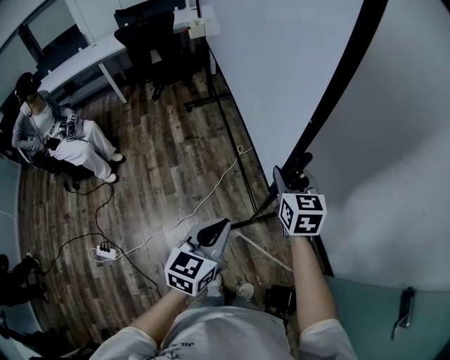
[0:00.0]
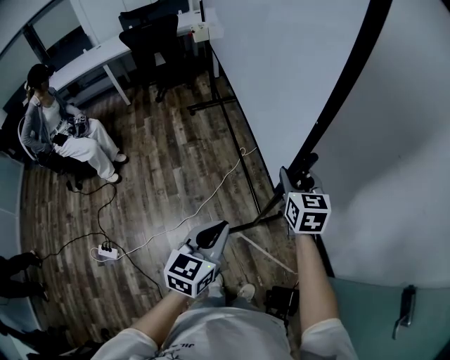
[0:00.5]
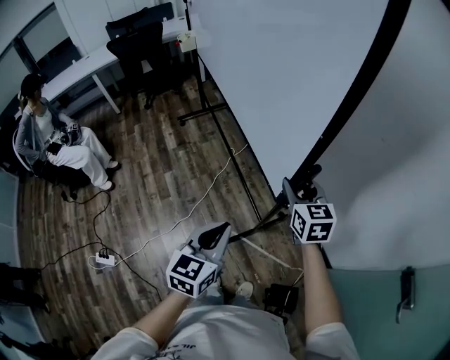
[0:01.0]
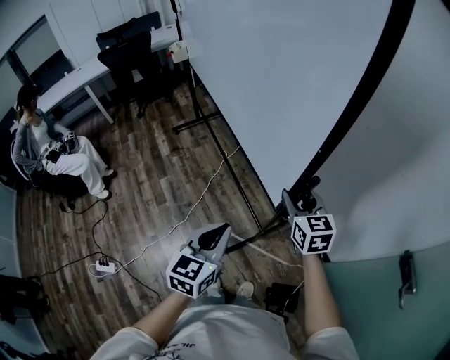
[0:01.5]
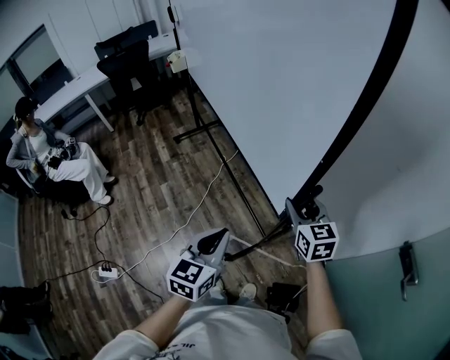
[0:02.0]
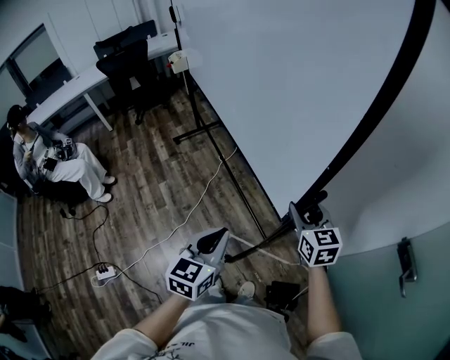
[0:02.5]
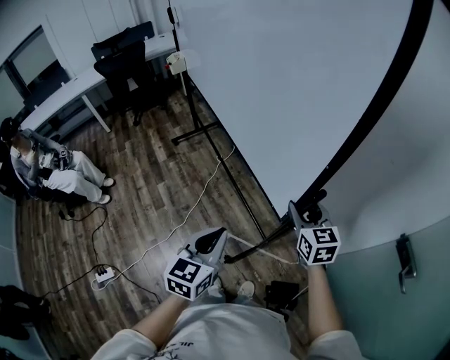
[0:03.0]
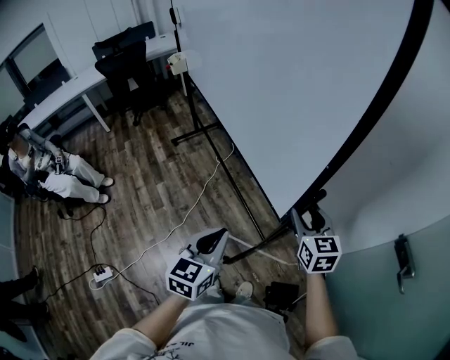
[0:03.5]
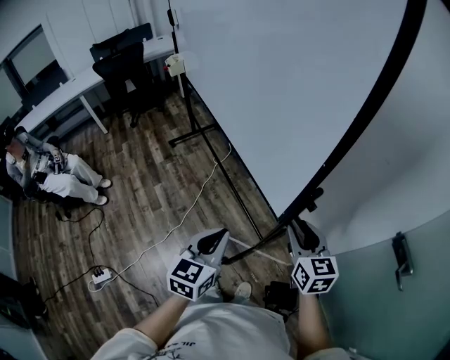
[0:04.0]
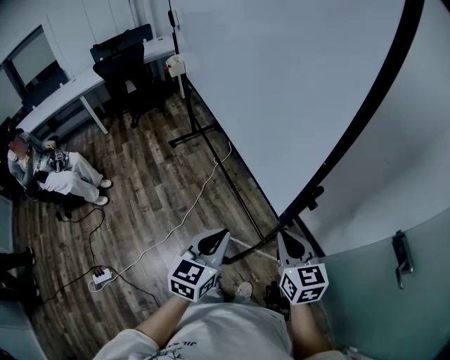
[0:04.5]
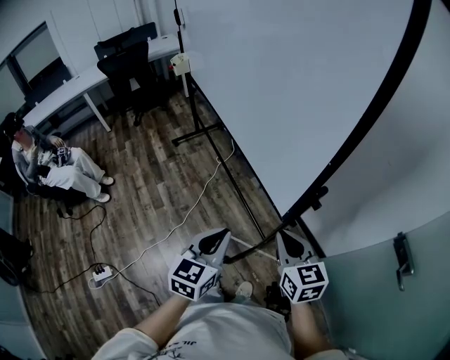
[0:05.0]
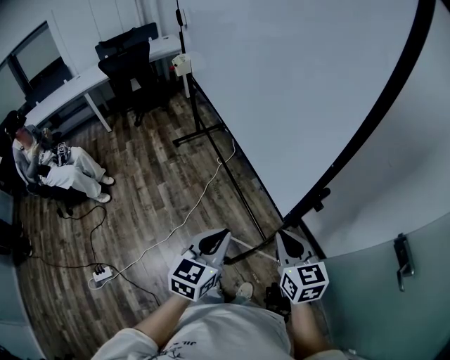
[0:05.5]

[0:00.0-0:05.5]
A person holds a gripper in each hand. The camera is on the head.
0.0 to 2.0 s: The right gripper goes some 20 cm to the right and backward, while the left gripper moves backward and to the right, roughly 10 cm.
2.0 to 3.5 s: The right gripper shifts by approximately 5 cm.
3.5 to 5.5 s: The right gripper moves backward and to the left, roughly 10 cm, and closes up.

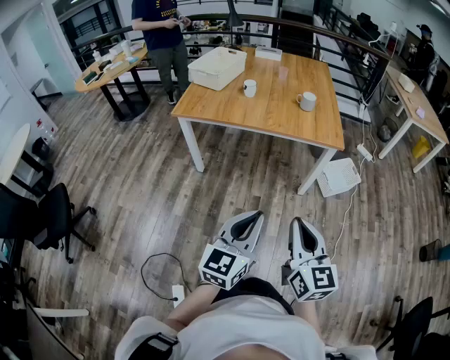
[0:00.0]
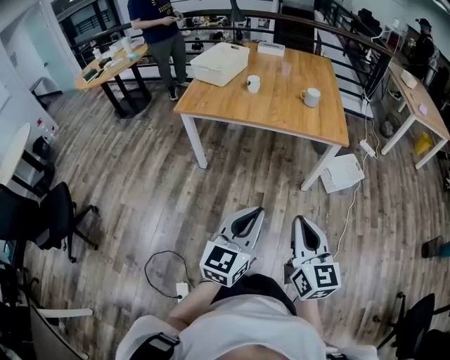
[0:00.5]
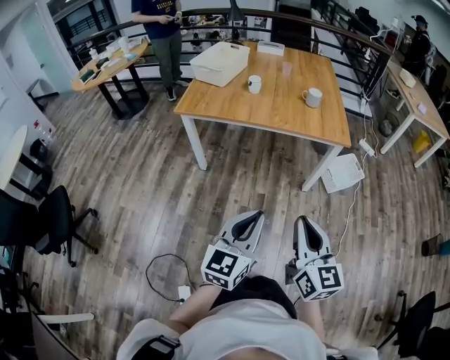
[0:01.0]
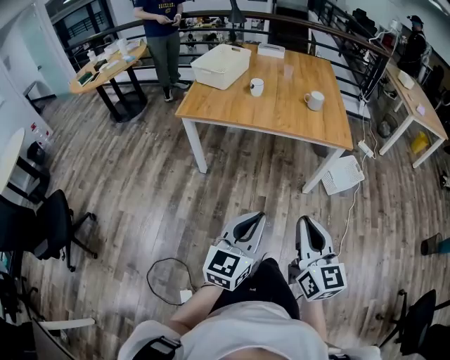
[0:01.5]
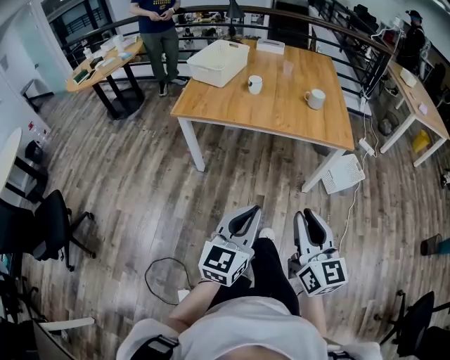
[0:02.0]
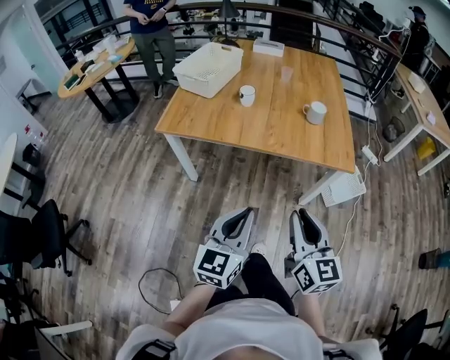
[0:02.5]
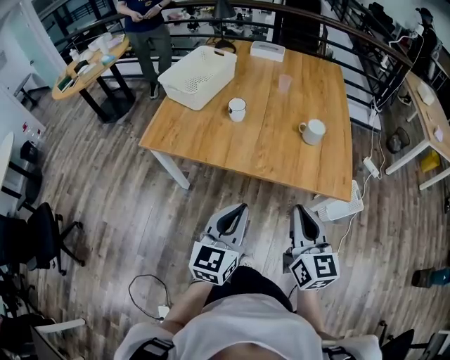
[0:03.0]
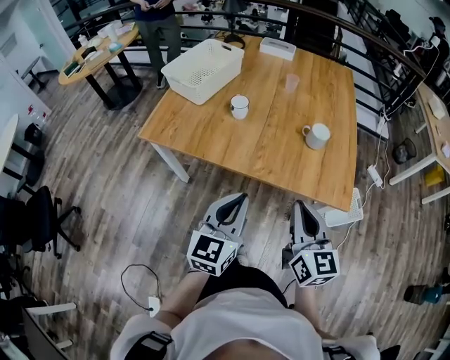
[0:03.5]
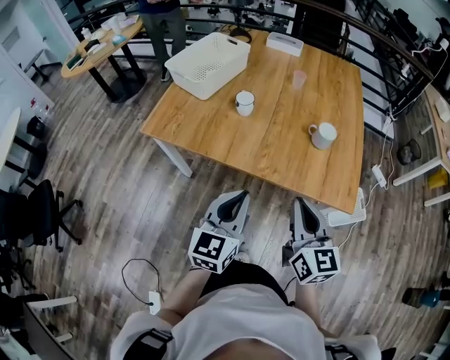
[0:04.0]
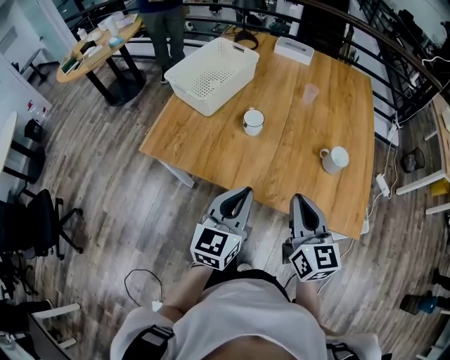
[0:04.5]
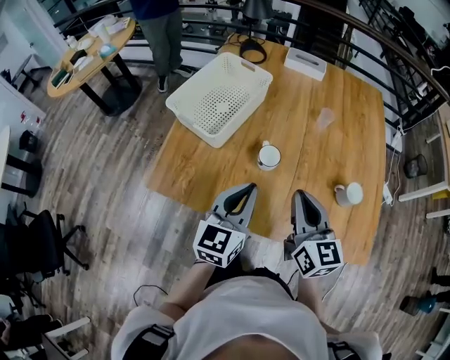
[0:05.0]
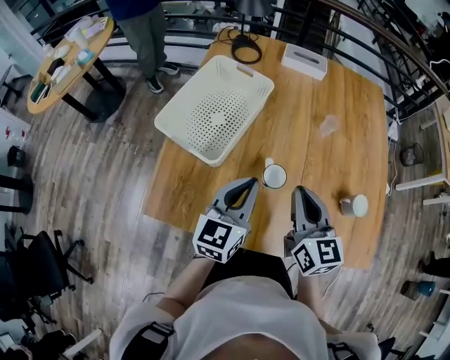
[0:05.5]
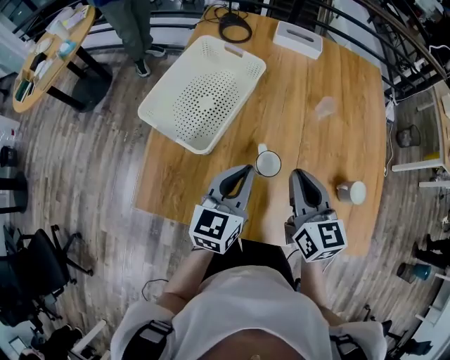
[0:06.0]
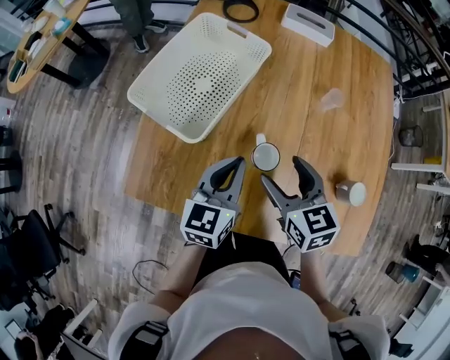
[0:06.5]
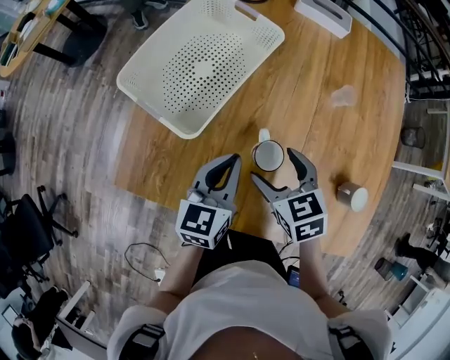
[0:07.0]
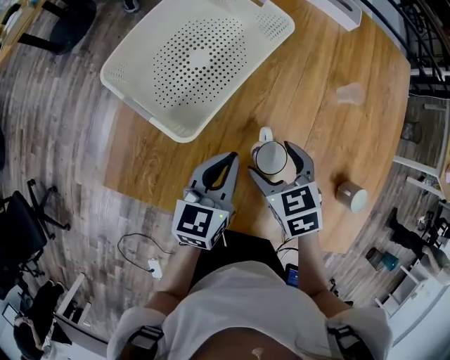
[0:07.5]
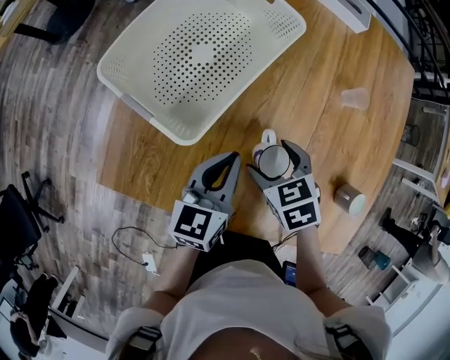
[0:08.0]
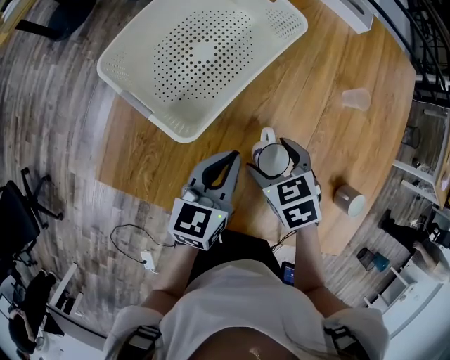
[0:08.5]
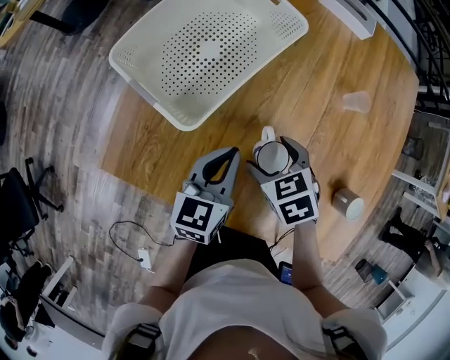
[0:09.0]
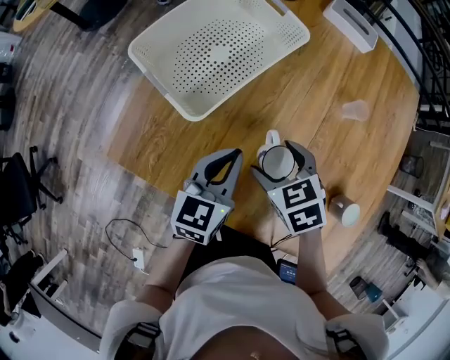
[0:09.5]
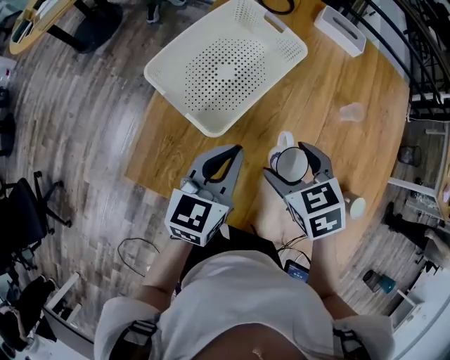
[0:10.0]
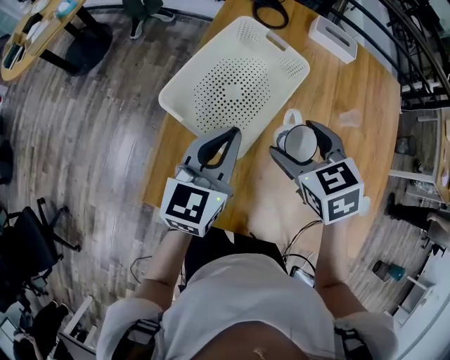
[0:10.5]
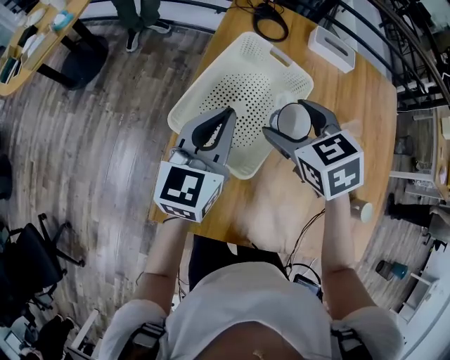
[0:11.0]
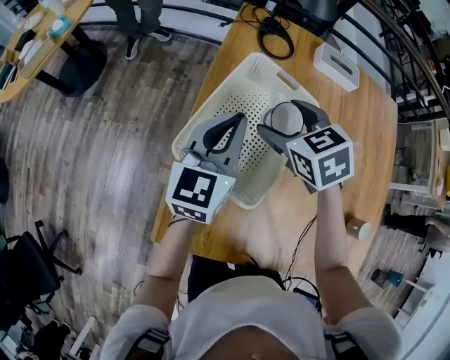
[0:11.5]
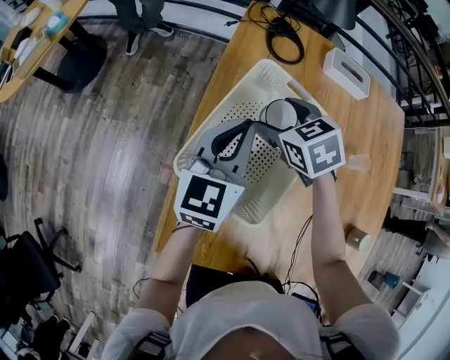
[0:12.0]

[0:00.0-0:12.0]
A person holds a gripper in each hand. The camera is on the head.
0.0 to 2.0 s: The left gripper heads to the left and forward, covering roughly 10 cm. Meanwhile the right gripper travels forward and to the left by approximately 10 cm.
2.0 to 4.0 s: Both grippers move forward, approximately 35 cm.
4.0 to 6.0 s: The two grippers go some 40 cm forward and to the left.
6.0 to 8.0 s: The right gripper shifts roughly 15 cm downward, tilts its fingers about 50 degrees downward, and opens its fingers. Meanwhile the left gripper is displaced downward by about 10 cm.
8.0 to 10.0 s: Both grippers travel together upward, about 10 cm.
10.0 to 12.0 s: The left gripper is displaced forward by approximately 25 cm, while the right gripper goes approximately 30 cm forward and to the left.

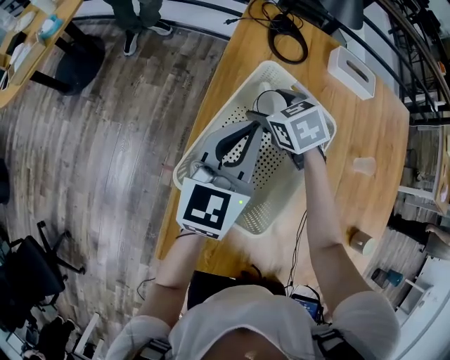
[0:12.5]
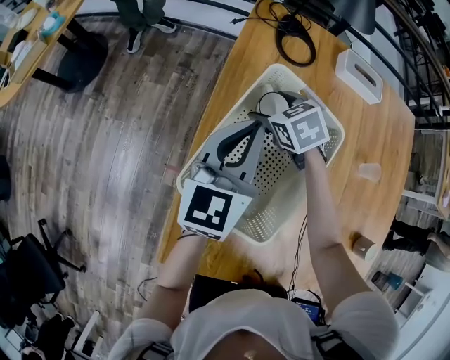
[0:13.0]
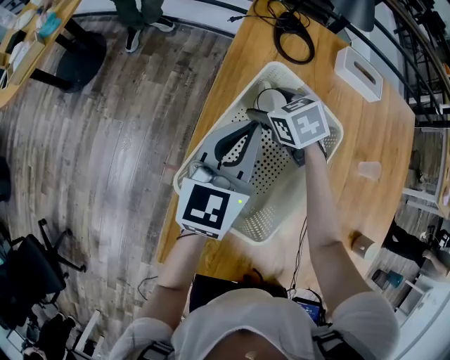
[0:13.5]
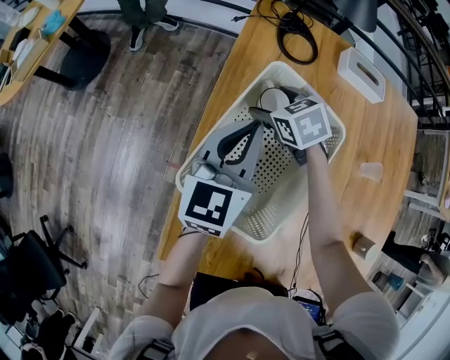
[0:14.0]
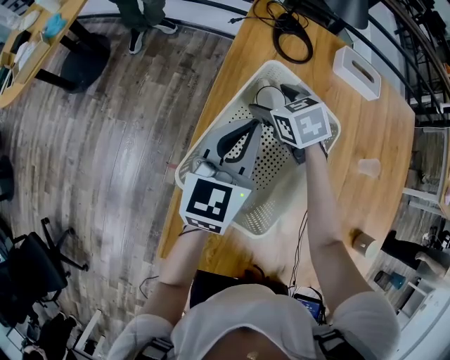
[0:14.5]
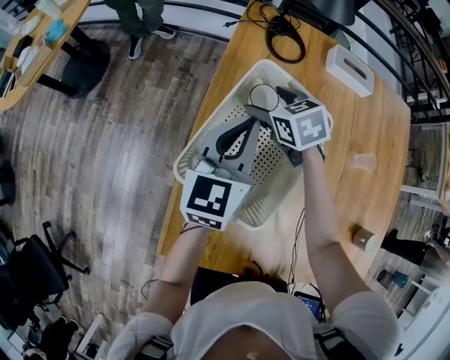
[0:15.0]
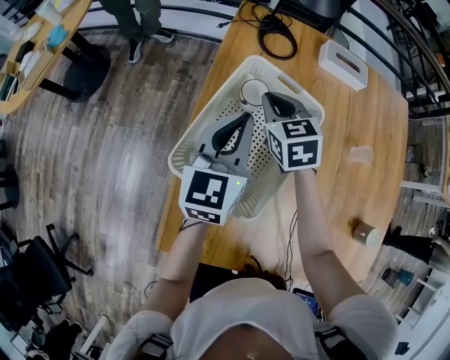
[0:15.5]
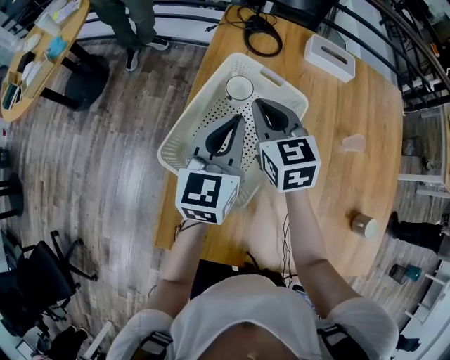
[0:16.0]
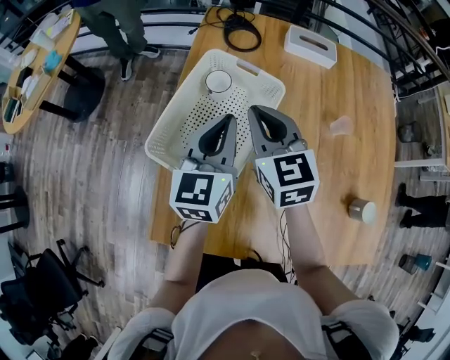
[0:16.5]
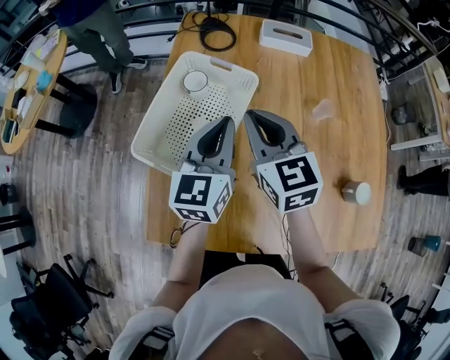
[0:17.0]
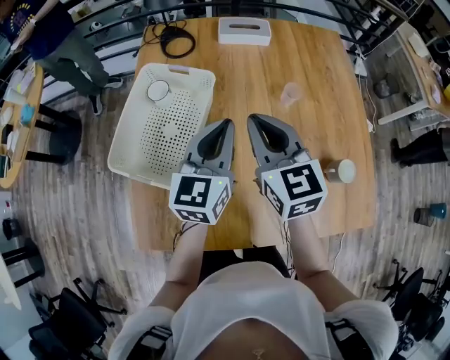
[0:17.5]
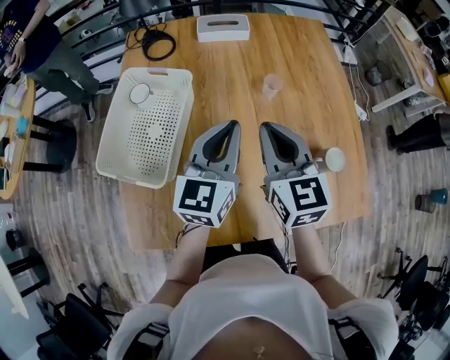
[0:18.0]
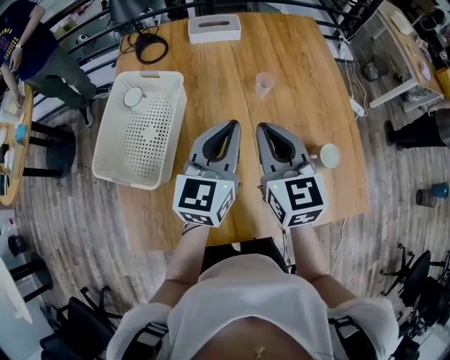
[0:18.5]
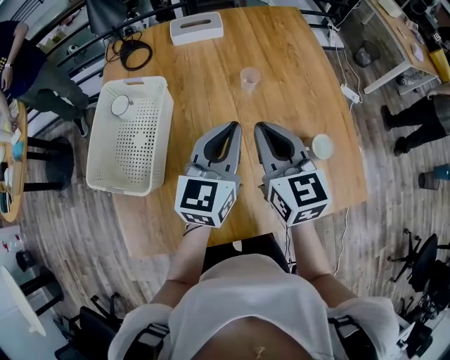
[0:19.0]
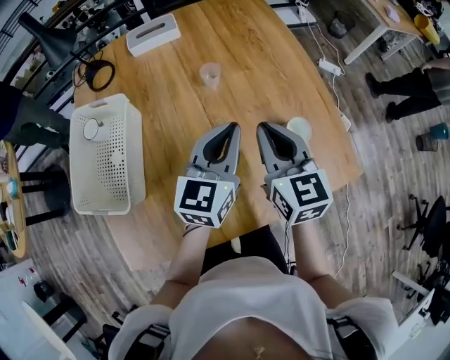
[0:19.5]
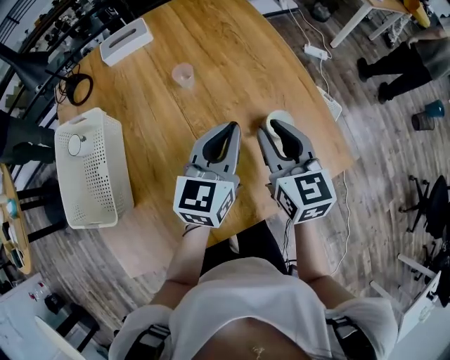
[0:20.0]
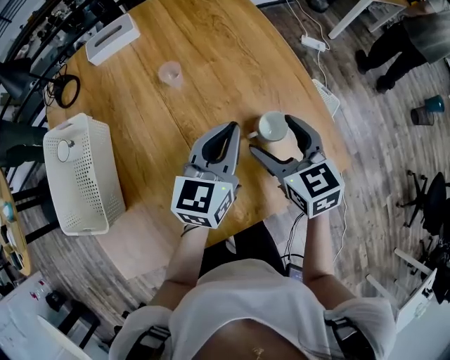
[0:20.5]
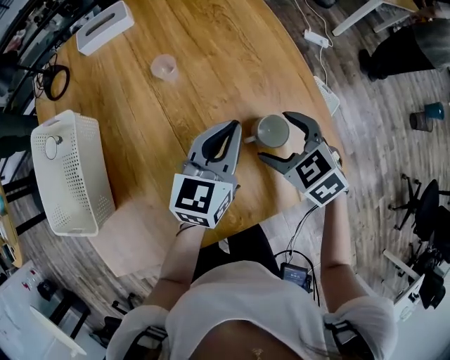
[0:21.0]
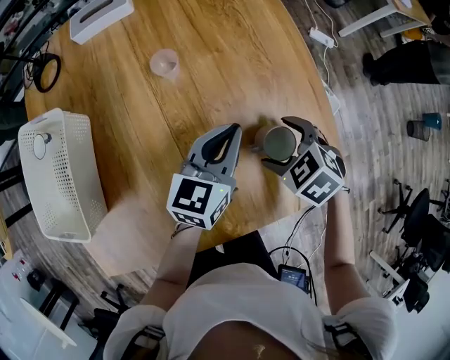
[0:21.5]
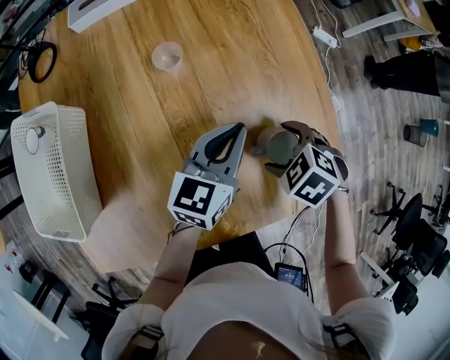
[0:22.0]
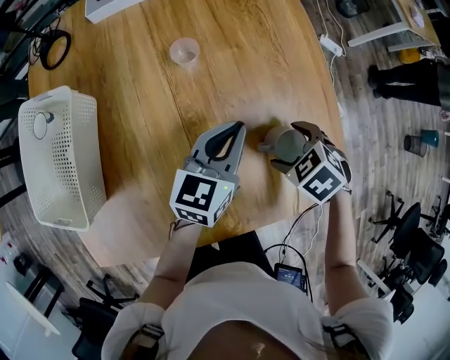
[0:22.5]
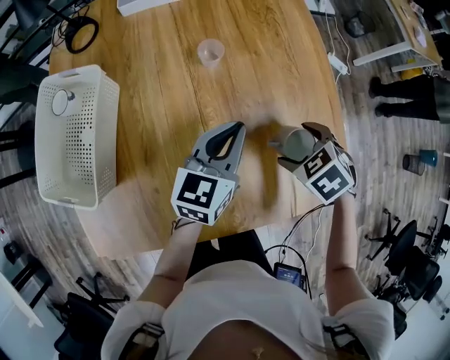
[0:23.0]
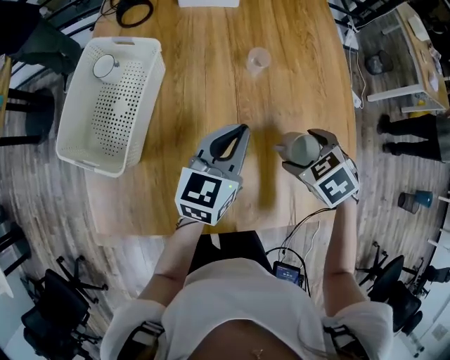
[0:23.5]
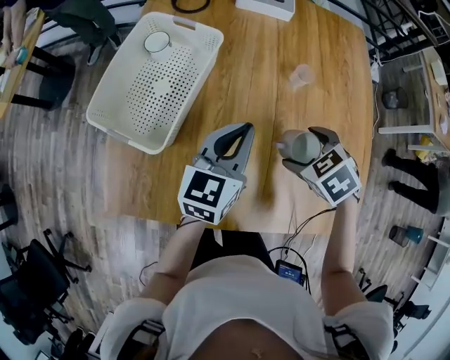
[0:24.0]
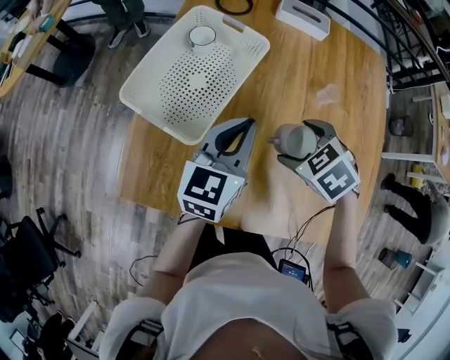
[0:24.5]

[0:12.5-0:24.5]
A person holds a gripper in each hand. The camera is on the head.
12.5 to 14.5 s: The grippers move only a little.
14.5 to 16.5 s: The right gripper moves upward, backward and to the right, about 25 cm, tips its fingers upward by roughly 30 degrees, and closes. Meanwhile the left gripper is displaced backward and to the right by roughly 10 cm.
16.5 to 18.5 s: The right gripper shifts some 30 cm to the right and backward, and changes its angle by about 20 degrees. Meanwhile the left gripper heads to the right, covering some 25 cm, and swivels some 20 degrees.
18.5 to 20.5 s: The left gripper moves to the right, some 20 cm, and rotates approximately 20 degrees. The right gripper is displaced to the right and downward by some 25 cm, and opens its fingers.
20.5 to 22.5 s: The left gripper travels downward by approximately 5 cm. The right gripper heads downward, covering about 10 cm, and tips its fingers downward by roughly 40 degrees.
22.5 to 24.5 s: The grippers both shift to the left by roughly 30 cm. The right gripper turns by approximately 30 degrees. The left gripper rotates roughly 30 degrees.
